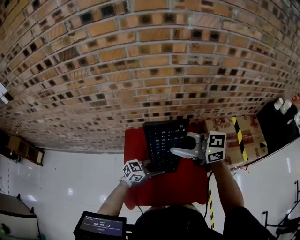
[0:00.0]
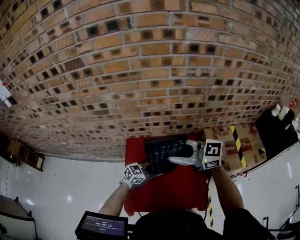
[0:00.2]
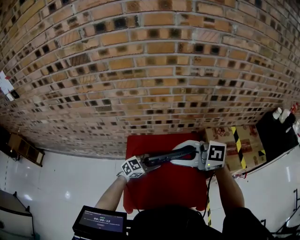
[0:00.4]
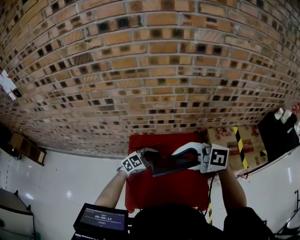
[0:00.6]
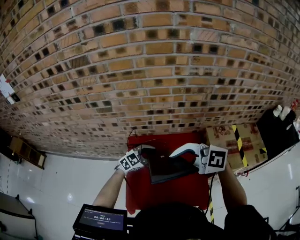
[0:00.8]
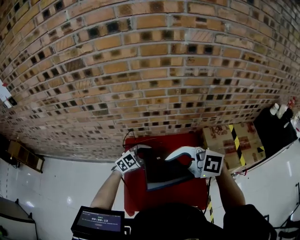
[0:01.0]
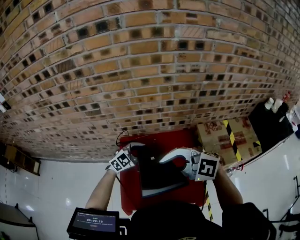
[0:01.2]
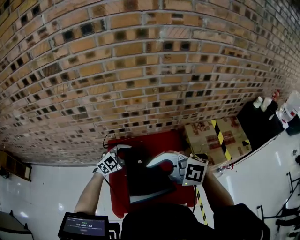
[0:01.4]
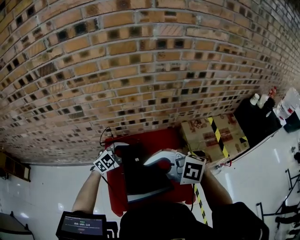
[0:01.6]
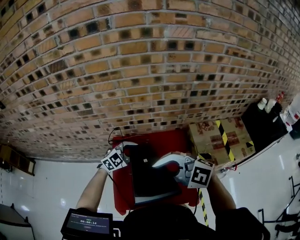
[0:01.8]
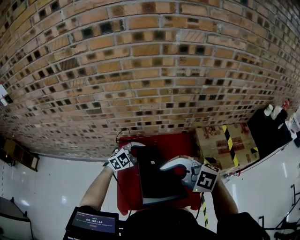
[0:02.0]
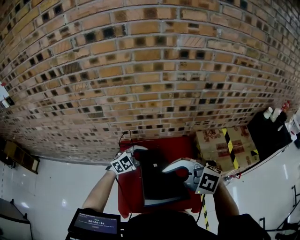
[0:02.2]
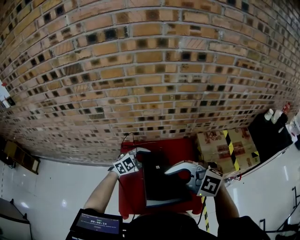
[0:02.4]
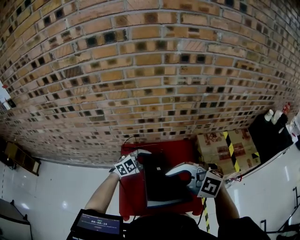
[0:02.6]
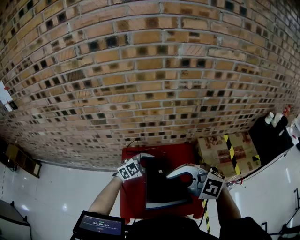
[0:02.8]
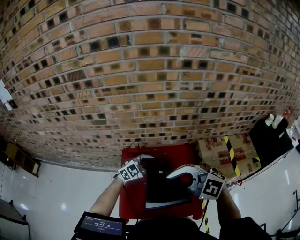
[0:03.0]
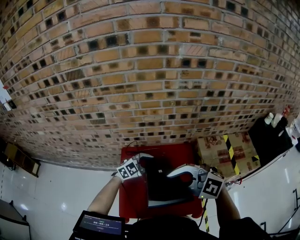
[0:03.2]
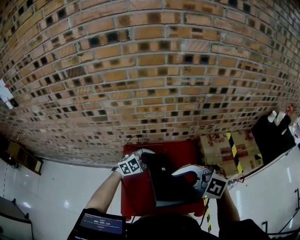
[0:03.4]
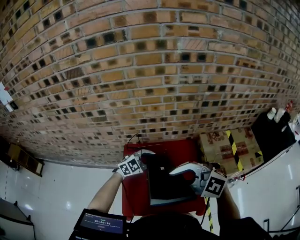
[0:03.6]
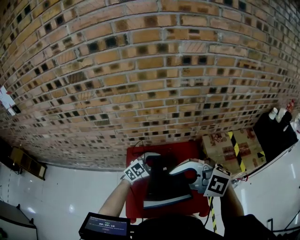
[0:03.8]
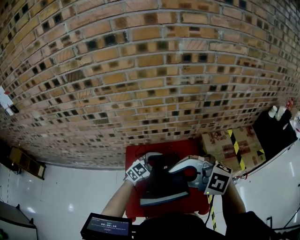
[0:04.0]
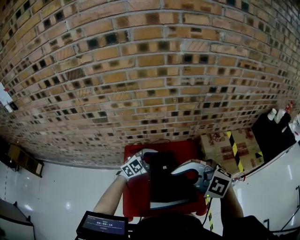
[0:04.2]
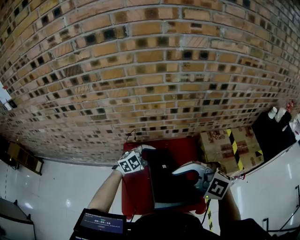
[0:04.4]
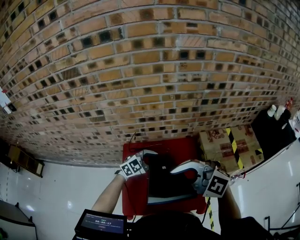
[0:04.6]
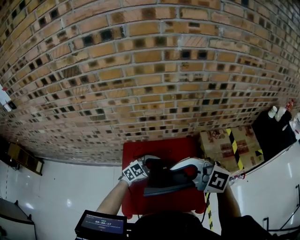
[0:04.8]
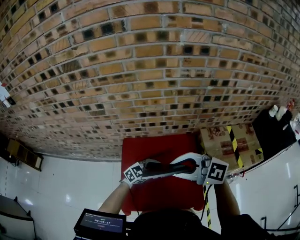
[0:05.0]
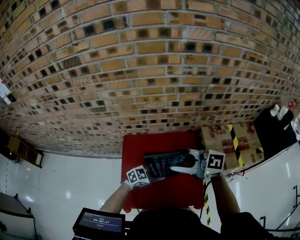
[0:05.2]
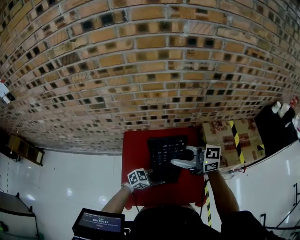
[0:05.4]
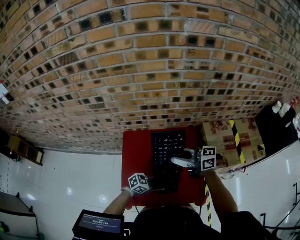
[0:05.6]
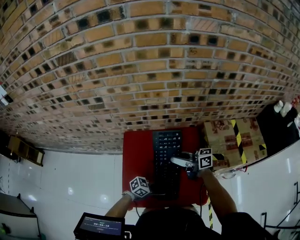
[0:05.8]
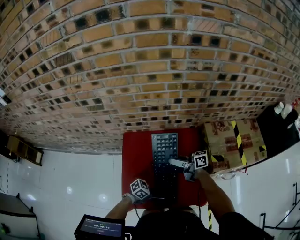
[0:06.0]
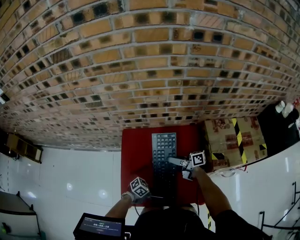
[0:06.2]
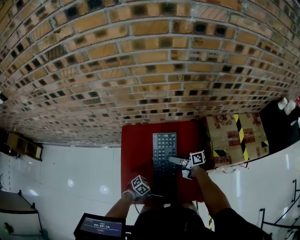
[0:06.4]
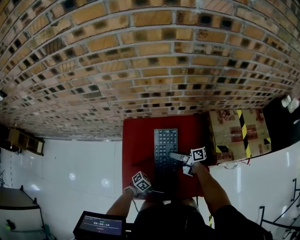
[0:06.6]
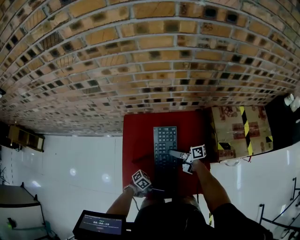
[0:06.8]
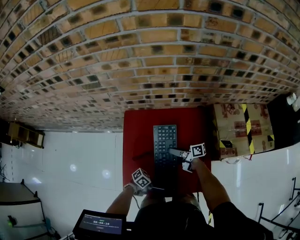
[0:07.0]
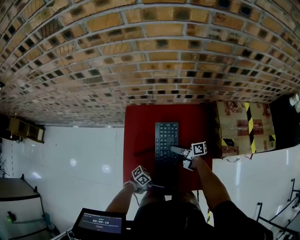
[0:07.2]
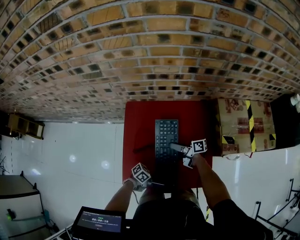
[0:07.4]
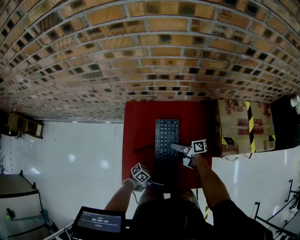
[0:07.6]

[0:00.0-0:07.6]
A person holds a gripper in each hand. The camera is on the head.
0:00.0 to 0:01.6: The left gripper ends up some 15 cm from where it was, and rotates approximately 40 degrees. The right gripper ends up roughly 10 cm from where it was, and changes its angle by some 40 degrees.
0:01.6 to 0:03.0: There are only small adjustments of the grippers.
0:03.0 to 0:04.6: The grippers move only a little.
0:04.6 to 0:06.0: The right gripper travels downward by about 25 cm, and rotates around the line of its fingers by approximately 80 degrees, clockwise from behind, while the left gripper shifts by approximately 30 cm, and twists some 50 degrees counterclockwise, seen from behind.
0:06.0 to 0:07.6: The right gripper goes some 15 cm downward, and swivels approximately 30 degrees. Meanwhile the left gripper goes approximately 10 cm downward, and turns by about 20 degrees.

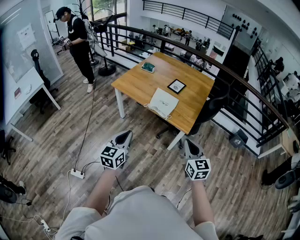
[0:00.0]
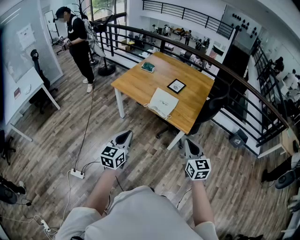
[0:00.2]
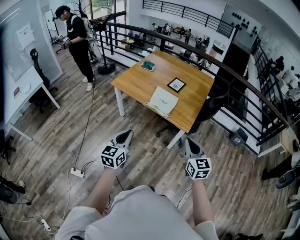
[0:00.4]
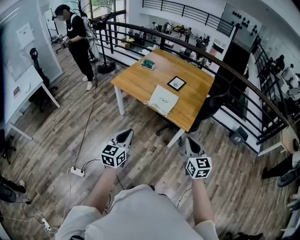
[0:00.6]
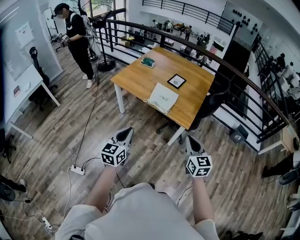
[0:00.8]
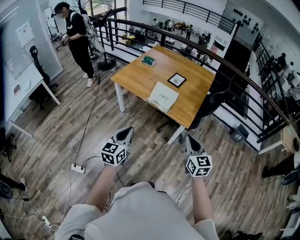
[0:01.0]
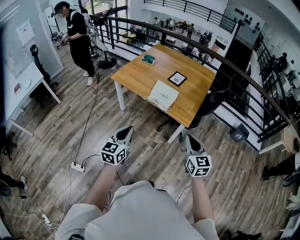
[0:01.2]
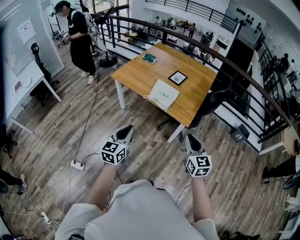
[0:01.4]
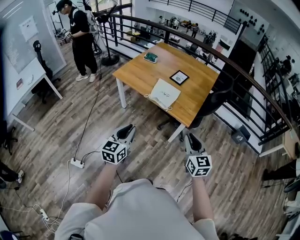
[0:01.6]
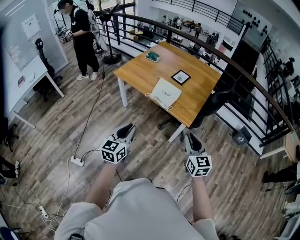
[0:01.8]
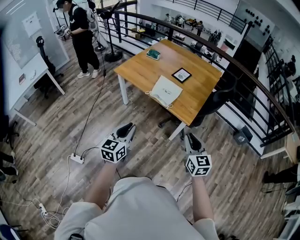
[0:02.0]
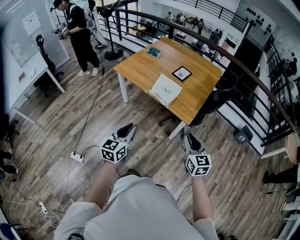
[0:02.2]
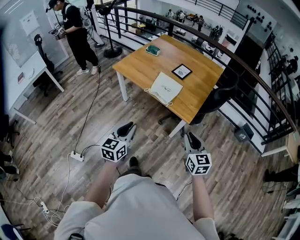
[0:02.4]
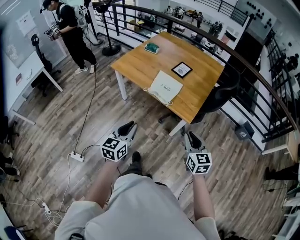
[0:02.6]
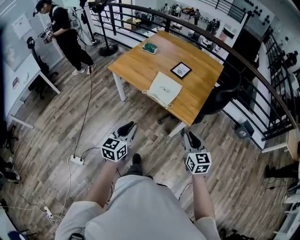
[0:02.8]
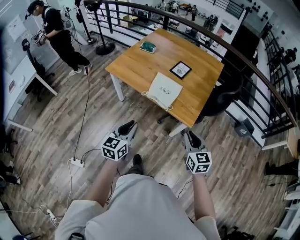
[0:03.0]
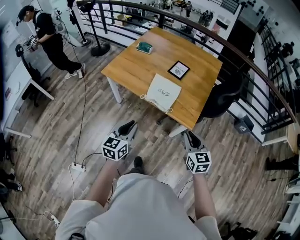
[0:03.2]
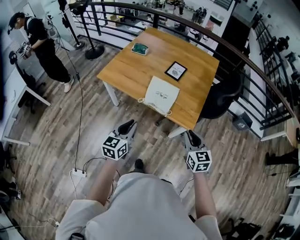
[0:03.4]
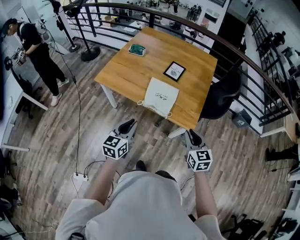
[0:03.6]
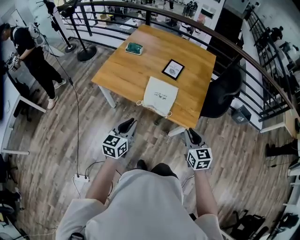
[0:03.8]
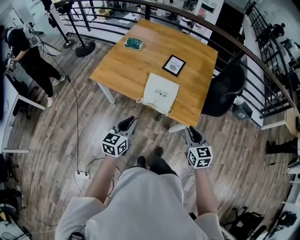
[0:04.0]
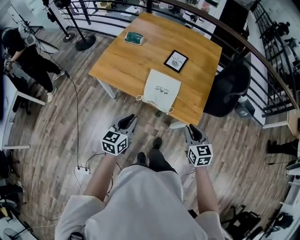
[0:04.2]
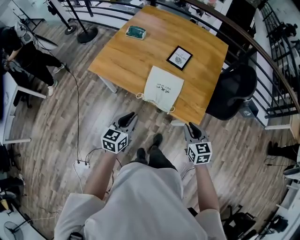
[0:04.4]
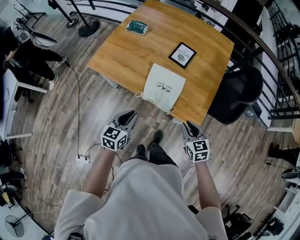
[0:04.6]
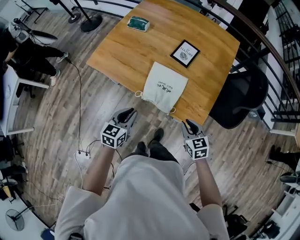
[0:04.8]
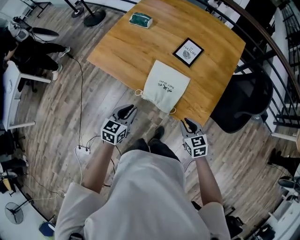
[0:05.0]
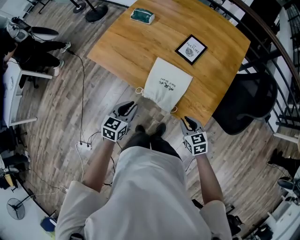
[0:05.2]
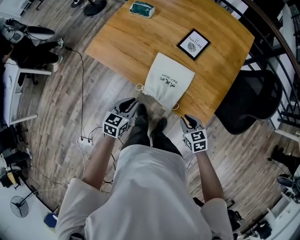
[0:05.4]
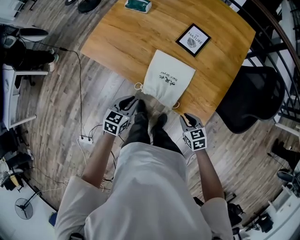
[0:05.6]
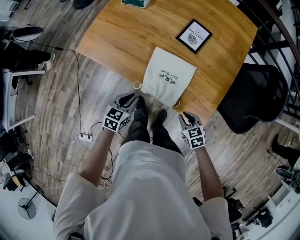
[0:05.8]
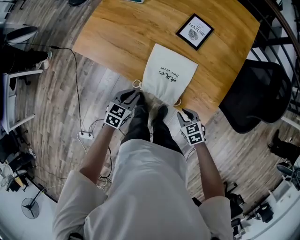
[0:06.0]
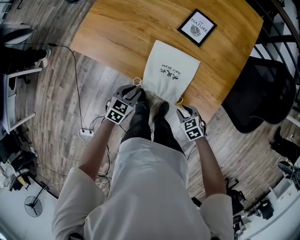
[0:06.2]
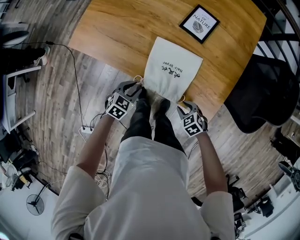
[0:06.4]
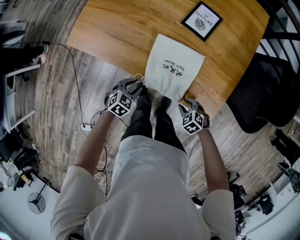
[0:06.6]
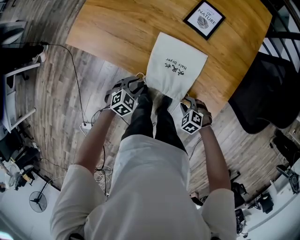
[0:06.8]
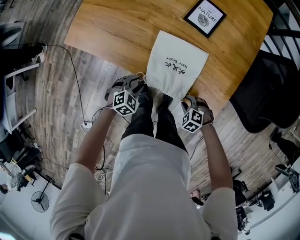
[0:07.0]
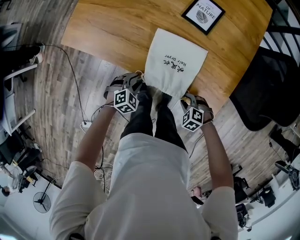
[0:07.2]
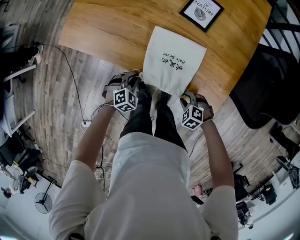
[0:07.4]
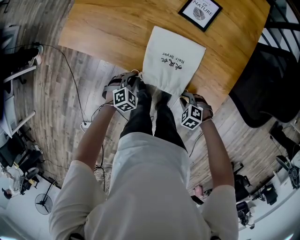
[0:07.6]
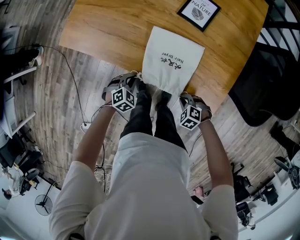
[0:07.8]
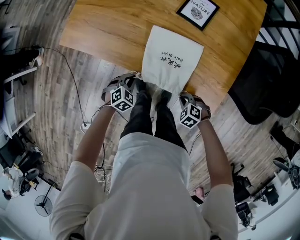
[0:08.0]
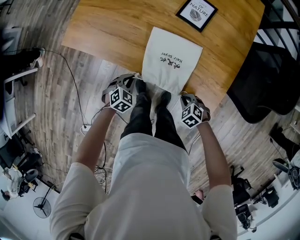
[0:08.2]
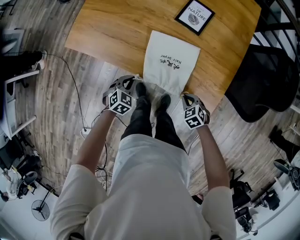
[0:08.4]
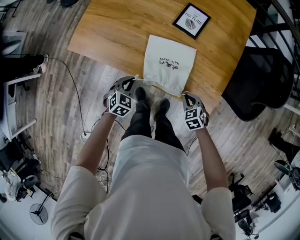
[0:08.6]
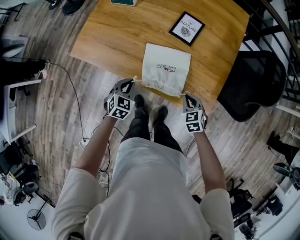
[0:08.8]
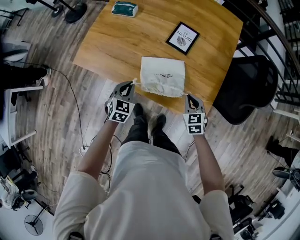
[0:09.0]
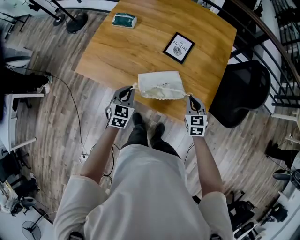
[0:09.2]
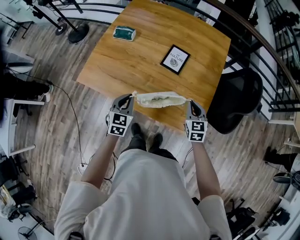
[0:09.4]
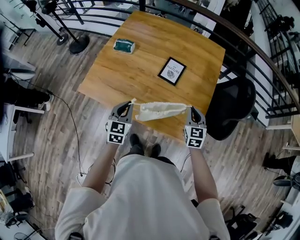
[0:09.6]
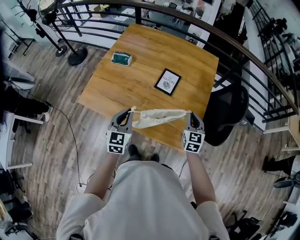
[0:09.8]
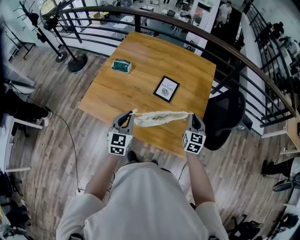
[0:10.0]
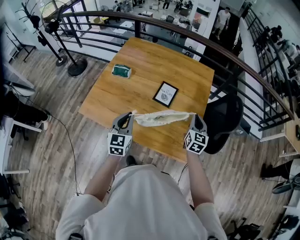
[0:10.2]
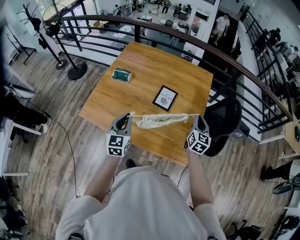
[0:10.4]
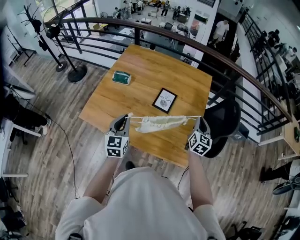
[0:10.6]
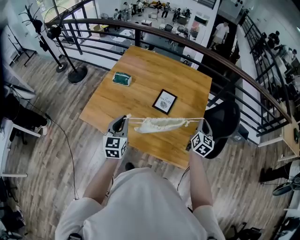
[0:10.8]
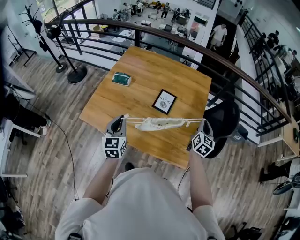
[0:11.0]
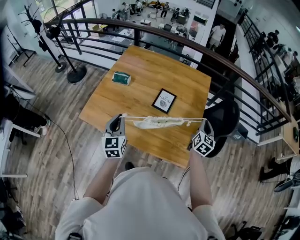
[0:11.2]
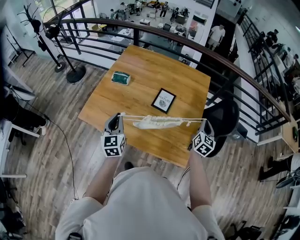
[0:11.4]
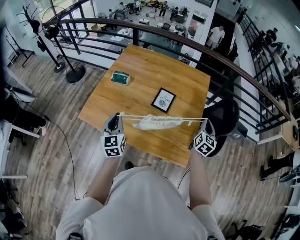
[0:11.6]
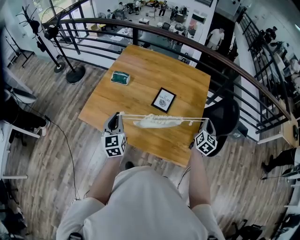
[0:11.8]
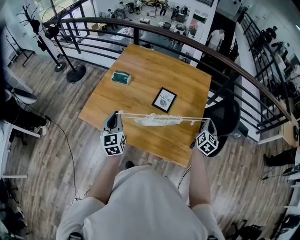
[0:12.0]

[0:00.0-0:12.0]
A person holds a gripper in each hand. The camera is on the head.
0:00.0 to 0:01.6: The grippers stay close to where they were, moving slightly.
0:01.6 to 0:03.0: The right gripper is displaced forward and downward by about 15 cm, while the left gripper is displaced forward by some 15 cm.
0:03.0 to 0:04.4: The grippers both shift forward and downward by about 20 cm.
0:04.4 to 0:06.0: The left gripper shifts approximately 25 cm downward and forward, and turns by approximately 20 degrees. Meanwhile the right gripper heads downward, covering approximately 20 cm, and turns by some 30 degrees.
0:06.0 to 0:07.6: Both grippers travel together downward, roughly 10 cm. The left gripper rotates around the line of its fingers by approximately 40 degrees, clockwise from behind. The right gripper changes its angle by about 40 degrees.
0:07.6 to 0:09.0: Both grippers move upward, about 15 cm. The left gripper turns by some 30 degrees; the right gripper tips its fingers upward by approximately 30 degrees.
0:09.0 to 0:10.4: The left gripper goes some 25 cm upward, and changes its angle by roughly 30 degrees. Meanwhile the right gripper moves upward and forward, roughly 25 cm, and tilts its fingers about 30 degrees upward.
0:10.4 to 0:12.0: The right gripper moves to the right, approximately 10 cm. Meanwhile the left gripper moves to the left, some 5 cm.

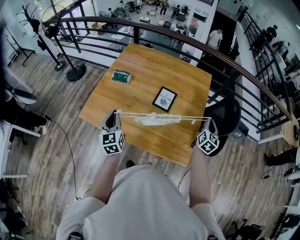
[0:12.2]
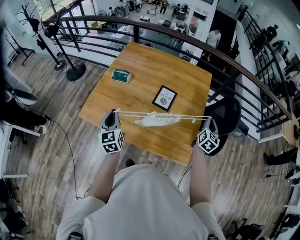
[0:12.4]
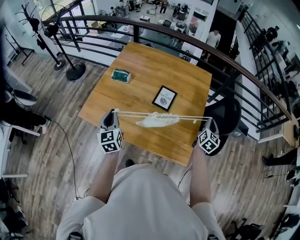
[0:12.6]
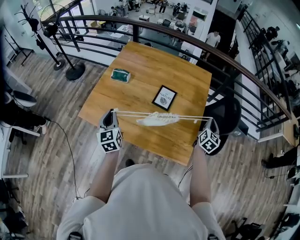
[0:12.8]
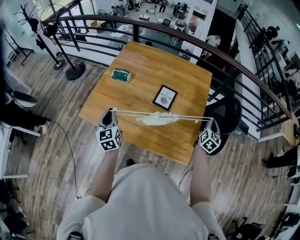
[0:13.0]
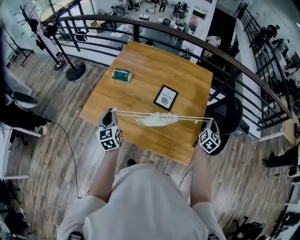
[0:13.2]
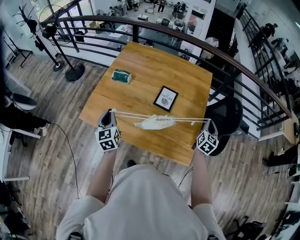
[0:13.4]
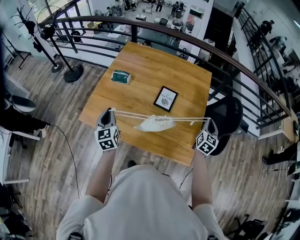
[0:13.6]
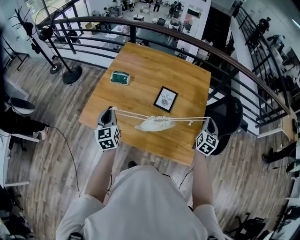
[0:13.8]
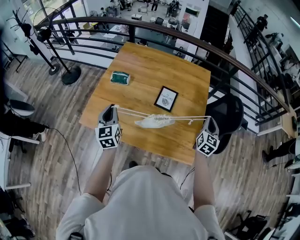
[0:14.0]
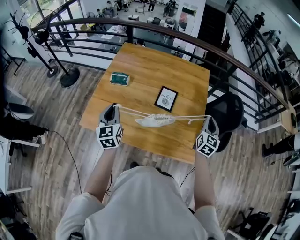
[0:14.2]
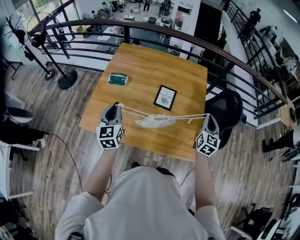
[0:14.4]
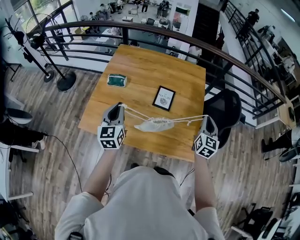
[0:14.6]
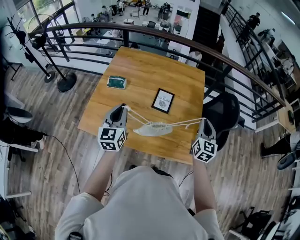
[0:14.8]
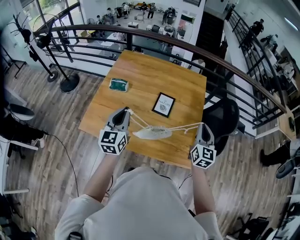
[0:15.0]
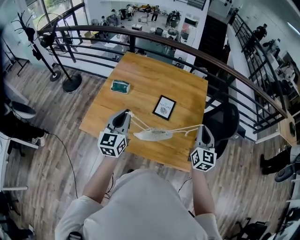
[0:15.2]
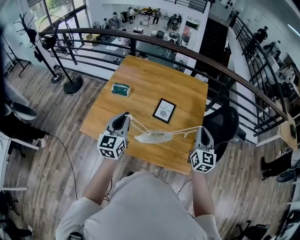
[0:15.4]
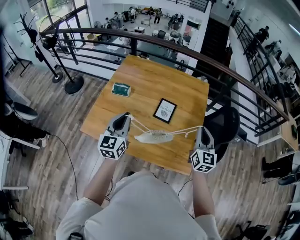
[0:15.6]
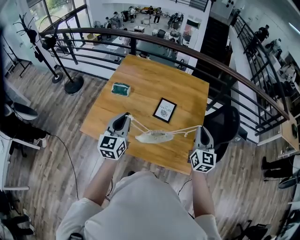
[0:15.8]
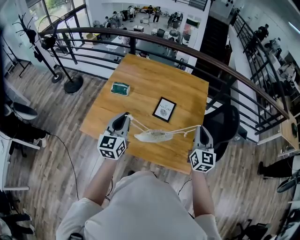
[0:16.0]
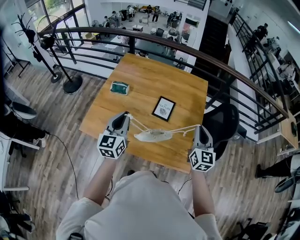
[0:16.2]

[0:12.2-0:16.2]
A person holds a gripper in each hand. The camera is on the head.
0:12.2 to 0:13.6: The left gripper is displaced to the left by about 5 cm.
0:13.6 to 0:14.8: The left gripper moves upward and to the right, about 10 cm, and turns by roughly 20 degrees, while the right gripper is displaced to the left, upward and backward by about 10 cm.
0:14.8 to 0:16.2: The grippers make only small movements.
